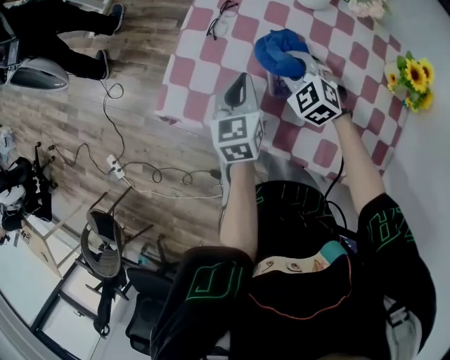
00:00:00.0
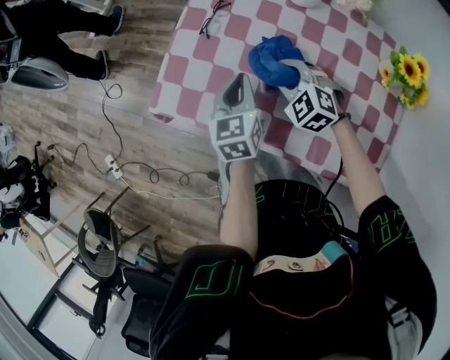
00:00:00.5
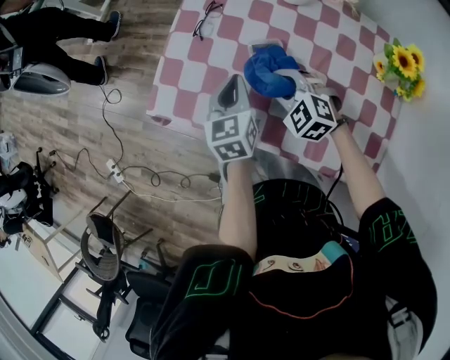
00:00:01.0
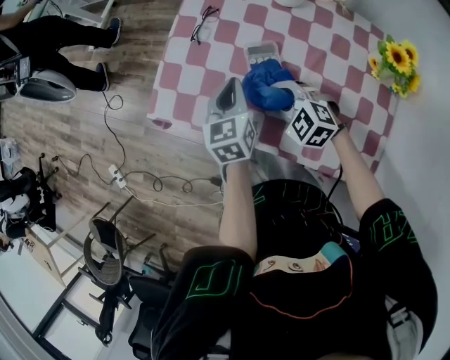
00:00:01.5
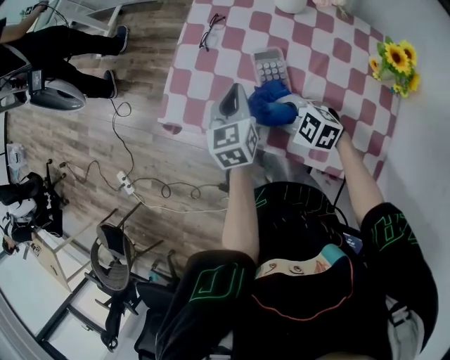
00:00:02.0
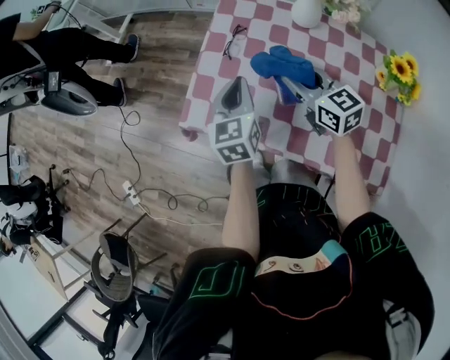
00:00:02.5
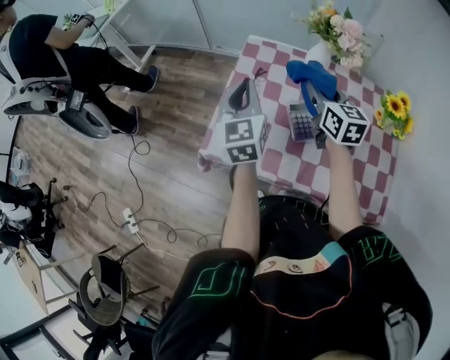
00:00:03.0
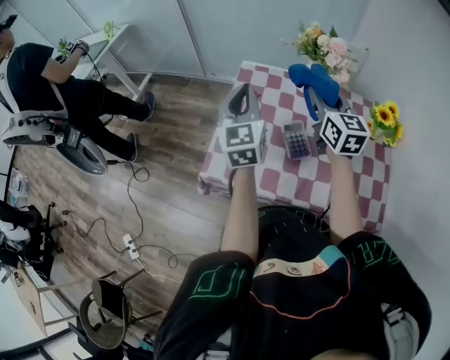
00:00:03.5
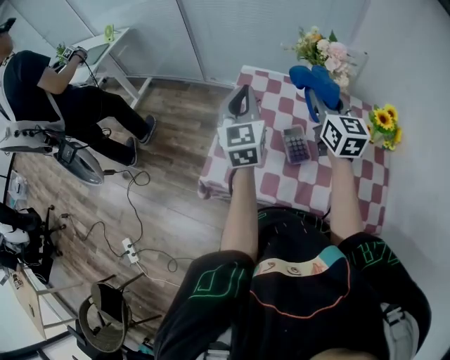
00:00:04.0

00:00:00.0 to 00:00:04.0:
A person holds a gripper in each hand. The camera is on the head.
00:00:00.0 to 00:00:02.0: The right gripper shifts approximately 15 cm backward and to the left, and turns by approximately 30 degrees.
00:00:02.0 to 00:00:04.0: Both grippers travel together upward, about 25 cm. The right gripper tips its fingers upward by about 40 degrees; the left gripper turns by about 30 degrees.

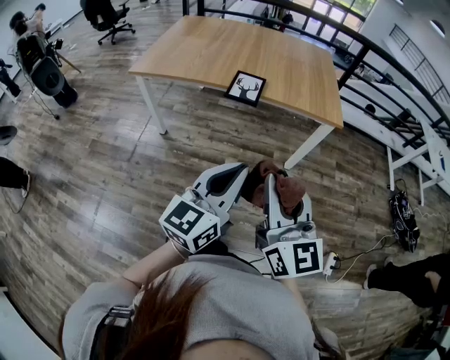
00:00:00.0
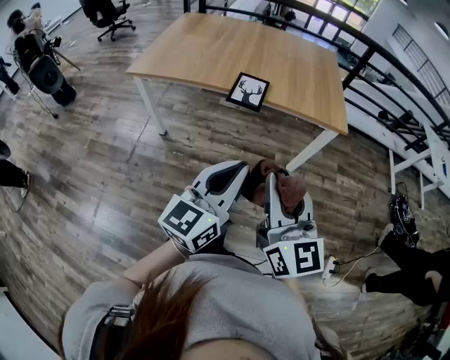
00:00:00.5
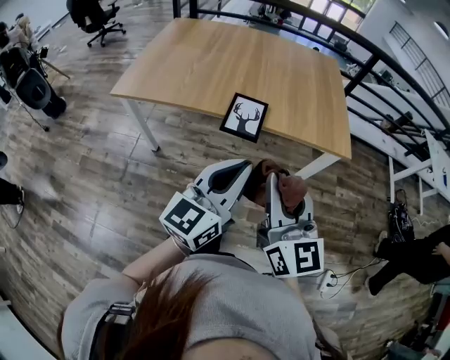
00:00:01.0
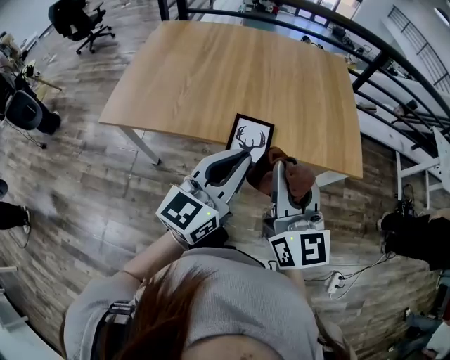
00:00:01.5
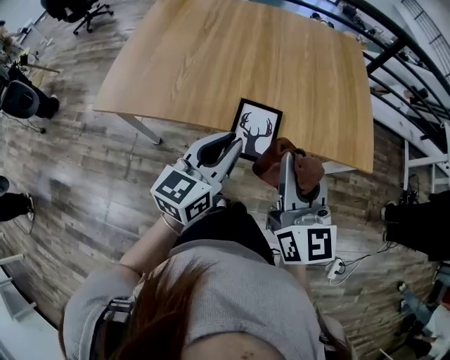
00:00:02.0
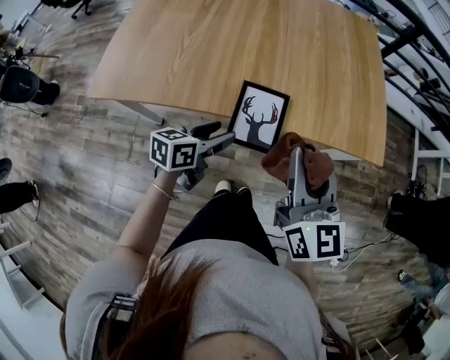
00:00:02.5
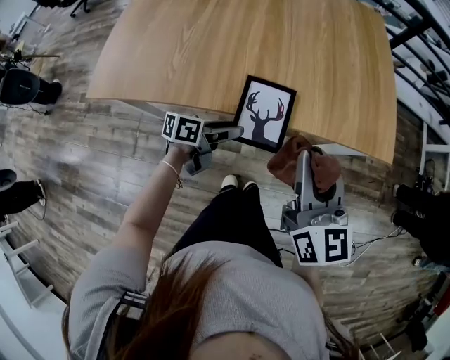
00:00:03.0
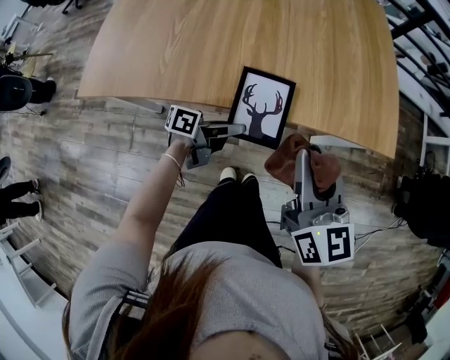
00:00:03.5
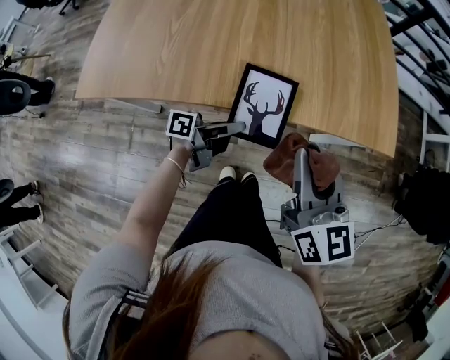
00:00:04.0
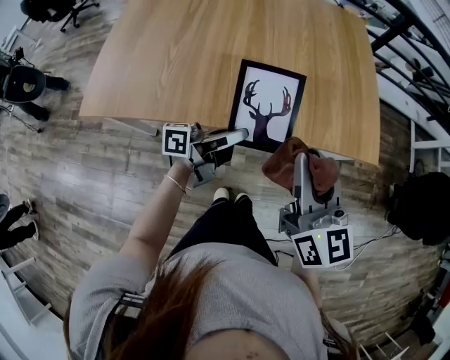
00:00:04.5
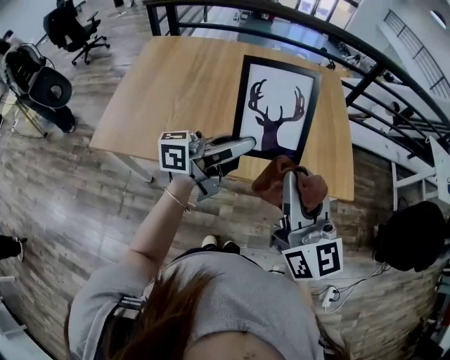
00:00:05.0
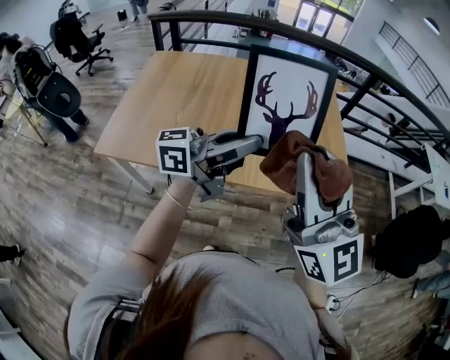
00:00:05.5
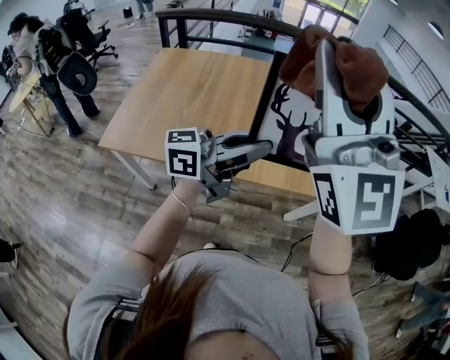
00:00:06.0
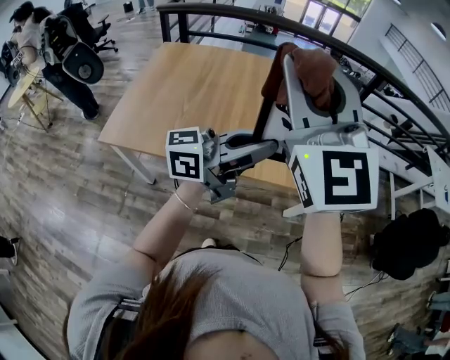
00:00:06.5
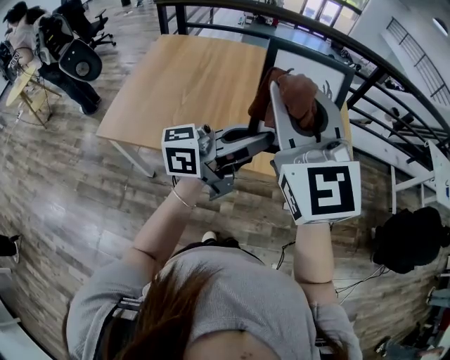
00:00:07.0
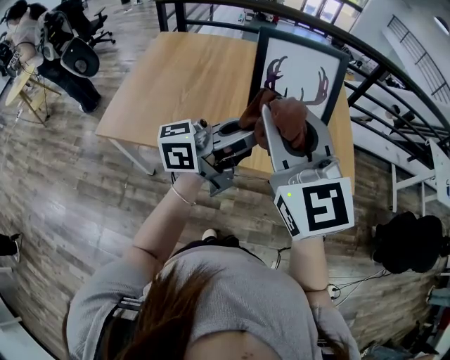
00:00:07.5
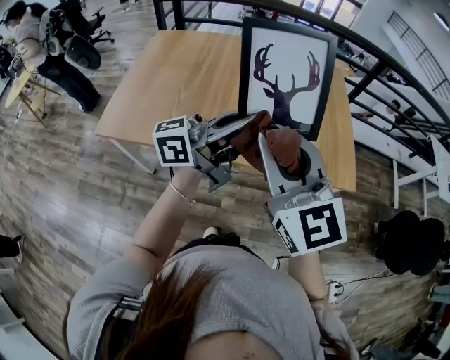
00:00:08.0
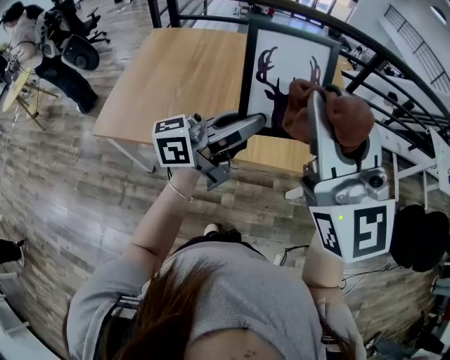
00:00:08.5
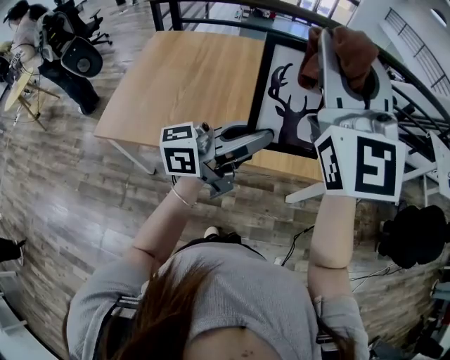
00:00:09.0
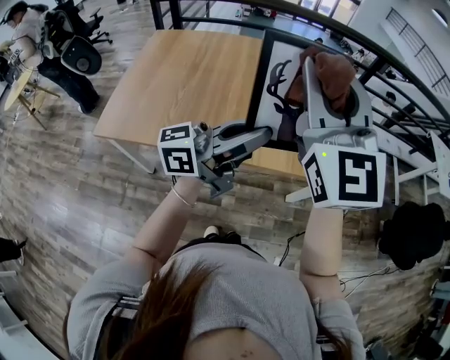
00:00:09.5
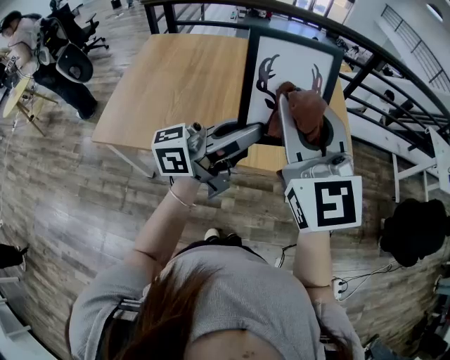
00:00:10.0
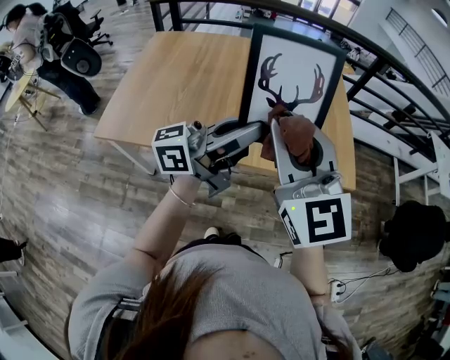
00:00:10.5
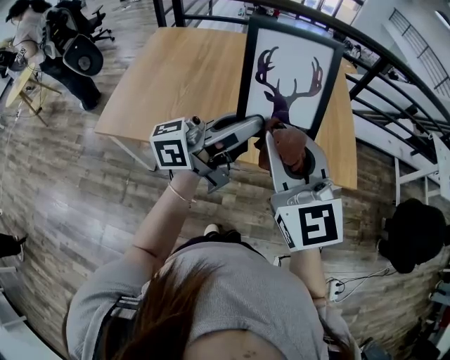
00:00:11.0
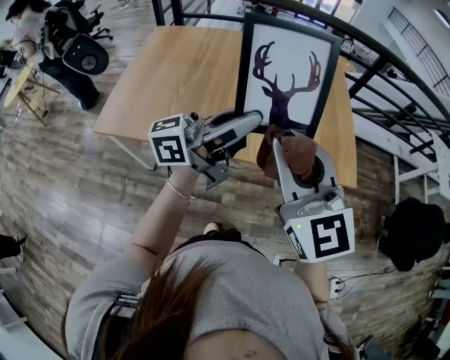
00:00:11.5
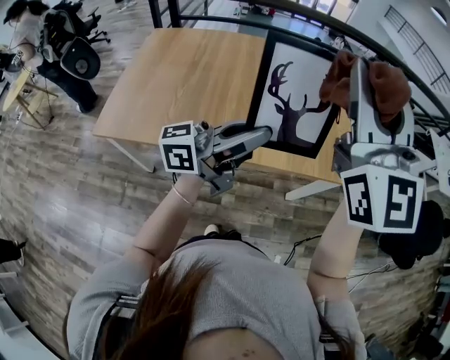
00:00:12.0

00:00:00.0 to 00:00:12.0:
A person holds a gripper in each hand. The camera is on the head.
00:00:00.0 to 00:00:02.0: The two grippers travel together, forward, some 40 cm.
00:00:02.0 to 00:00:04.0: The left gripper is displaced downward by about 20 cm, rotates around the line of its fingers by some 60 degrees, counterclockwise from behind, and opens and closes again. Meanwhile the right gripper is displaced downward by some 10 cm.
00:00:04.0 to 00:00:06.0: The grippers both shift upward by approximately 40 cm. The right gripper tilts its fingers some 40 degrees upward. Meanwhile the left gripper twists about 50 degrees clockwise, seen from behind.
00:00:06.0 to 00:00:08.0: The right gripper heads downward, covering roughly 20 cm, and angles its fingers downward, by roughly 30 degrees.
00:00:08.0 to 00:00:10.0: The right gripper travels upward and forward by approximately 10 cm.
00:00:10.0 to 00:00:12.0: The right gripper travels upward by some 10 cm.

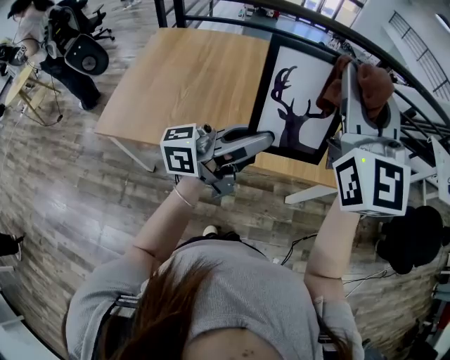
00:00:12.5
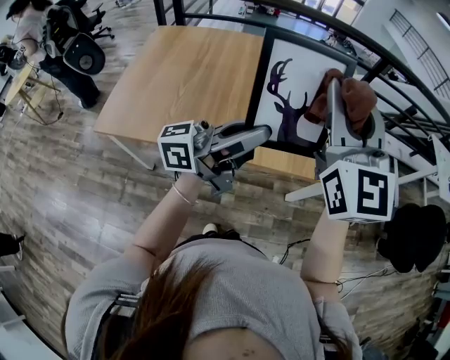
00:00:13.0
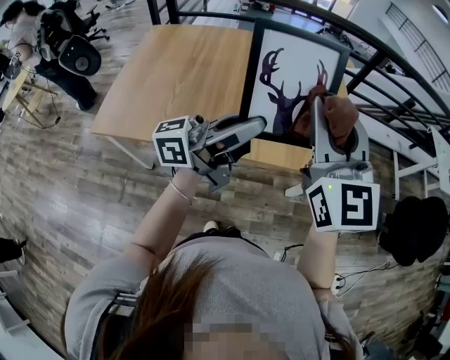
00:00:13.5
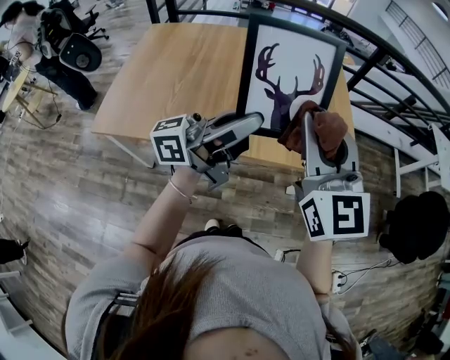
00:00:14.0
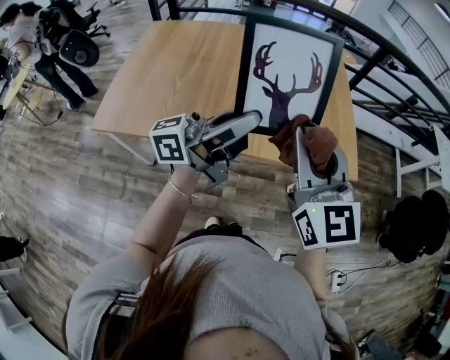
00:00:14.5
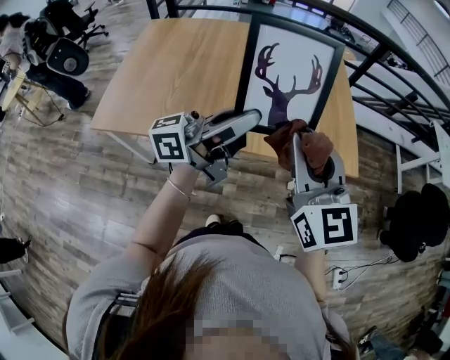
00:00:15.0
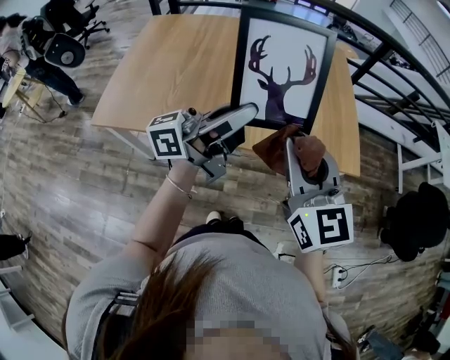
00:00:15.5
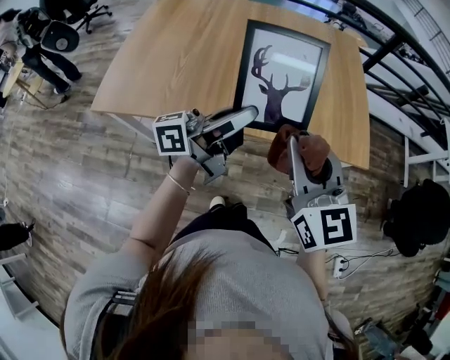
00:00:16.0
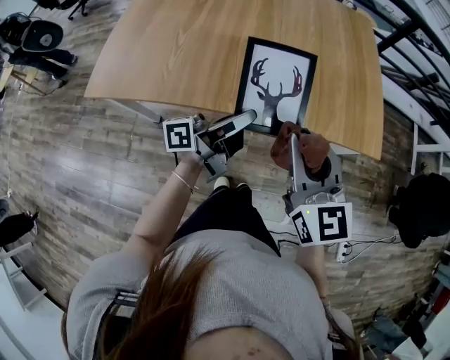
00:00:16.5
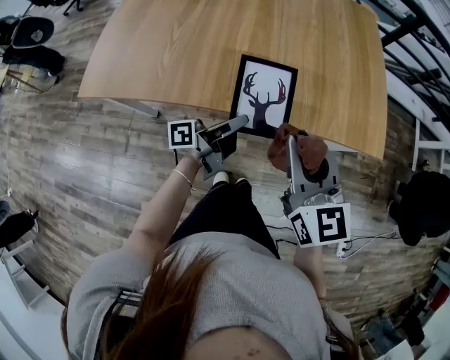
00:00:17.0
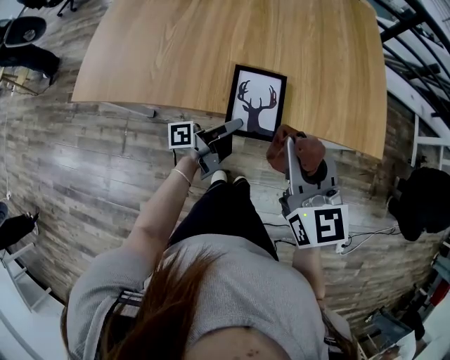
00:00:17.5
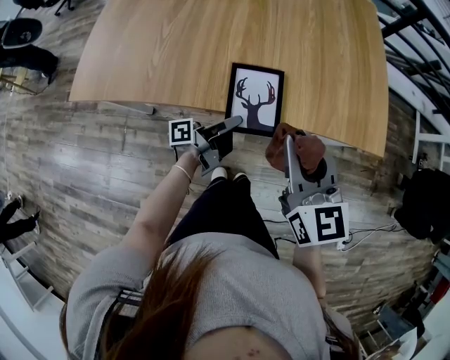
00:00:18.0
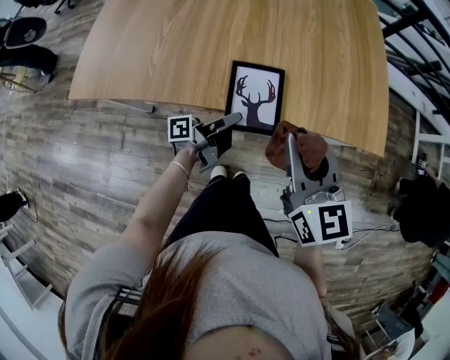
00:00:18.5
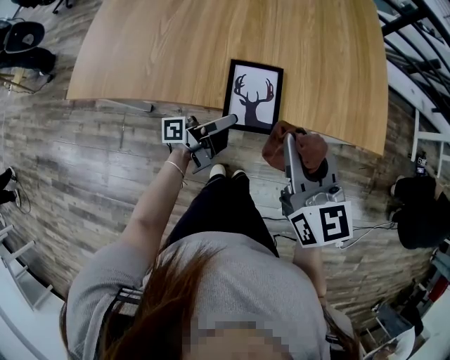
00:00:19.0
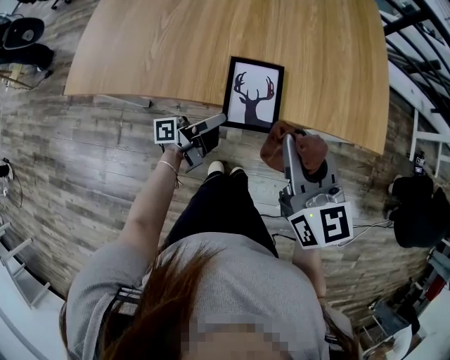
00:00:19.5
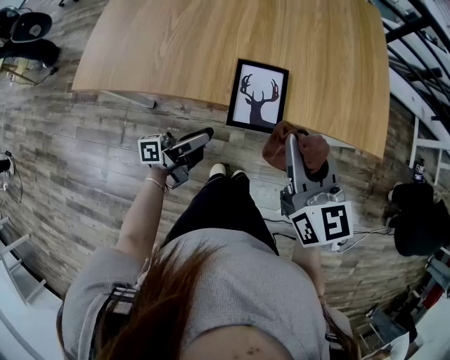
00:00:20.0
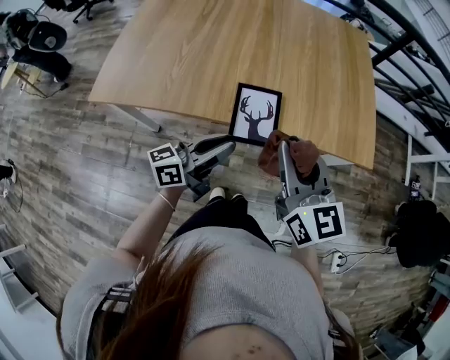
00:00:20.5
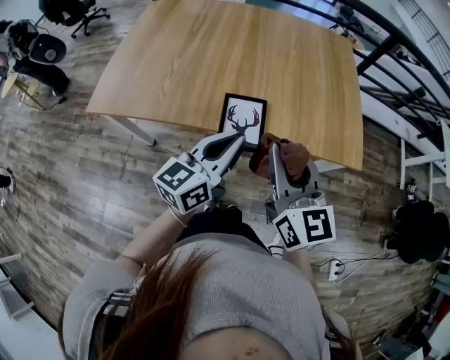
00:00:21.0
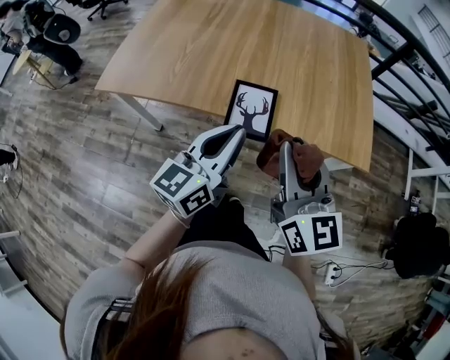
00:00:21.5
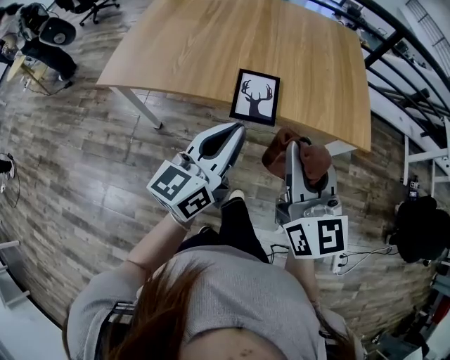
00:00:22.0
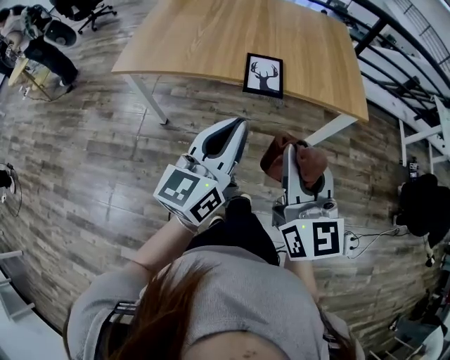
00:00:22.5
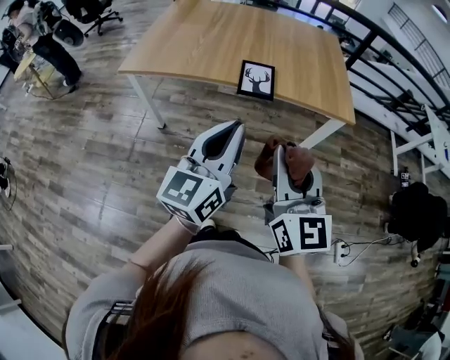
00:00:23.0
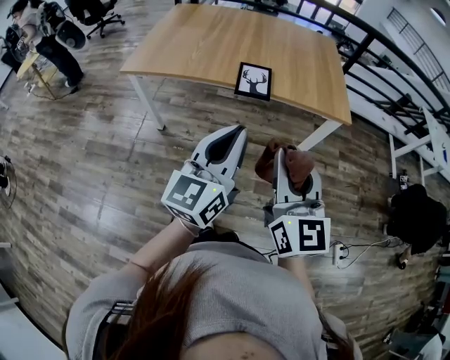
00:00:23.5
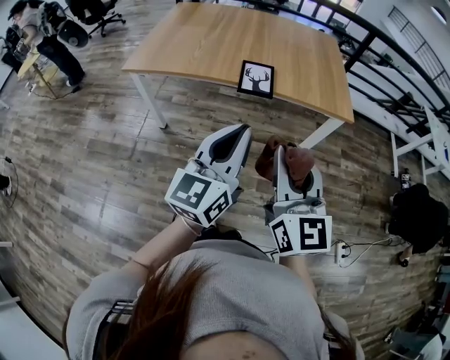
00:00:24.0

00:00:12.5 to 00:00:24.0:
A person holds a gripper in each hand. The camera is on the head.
00:00:12.5 to 00:00:14.5: The right gripper is displaced downward and backward by some 15 cm, and swivels about 20 degrees.
00:00:14.5 to 00:00:16.5: Both grippers move downward, about 15 cm. The left gripper rotates some 30 degrees.
00:00:16.5 to 00:00:18.5: The left gripper is displaced downward by approximately 15 cm, and rotates some 20 degrees.
00:00:18.5 to 00:00:20.0: The left gripper shifts some 10 cm backward and to the left, and opens.
00:00:20.0 to 00:00:22.0: The left gripper travels upward and backward by some 25 cm, twists approximately 60 degrees clockwise, seen from behind, and closes up; the right gripper shifts some 15 cm backward and upward.
00:00:22.0 to 00:00:24.0: Both grippers move backward, some 25 cm.
